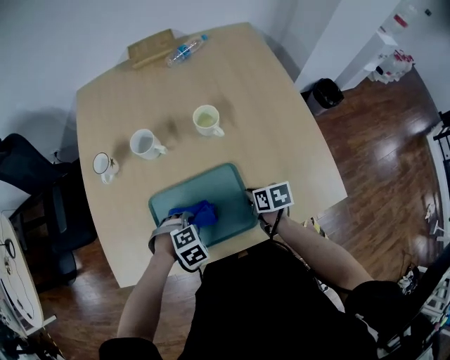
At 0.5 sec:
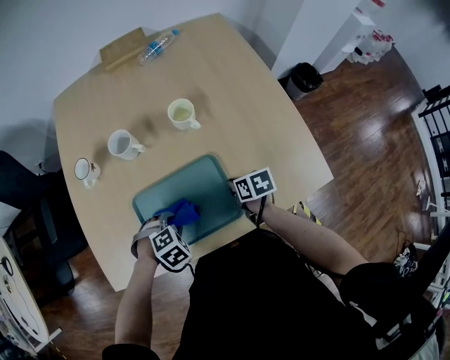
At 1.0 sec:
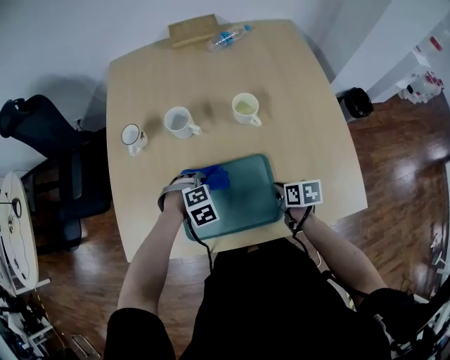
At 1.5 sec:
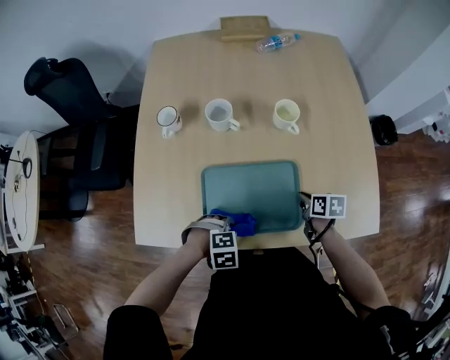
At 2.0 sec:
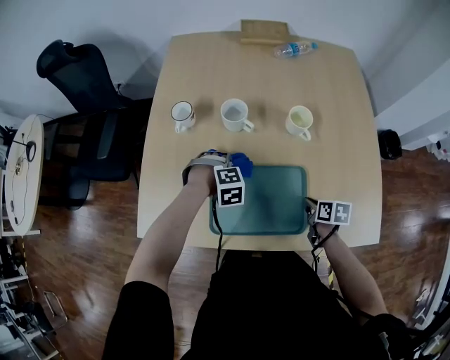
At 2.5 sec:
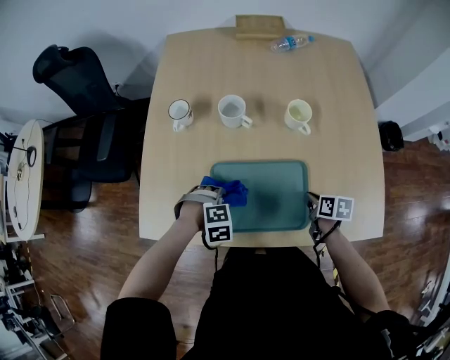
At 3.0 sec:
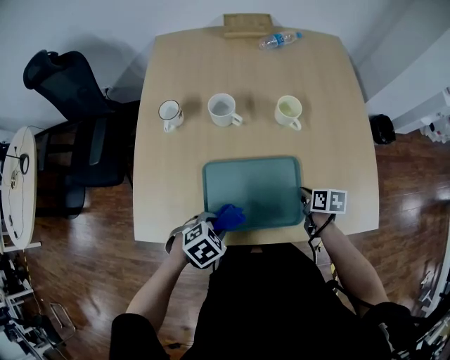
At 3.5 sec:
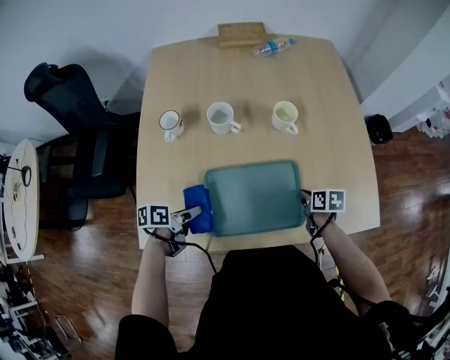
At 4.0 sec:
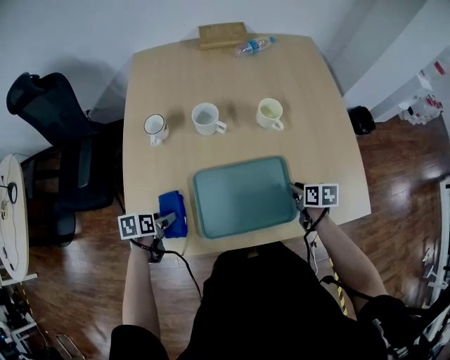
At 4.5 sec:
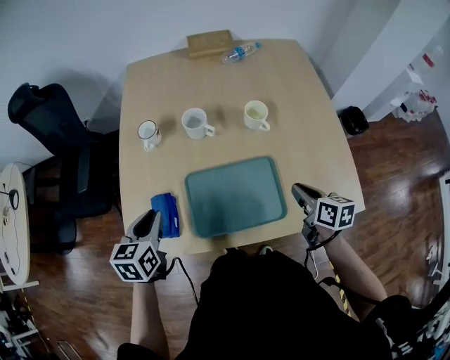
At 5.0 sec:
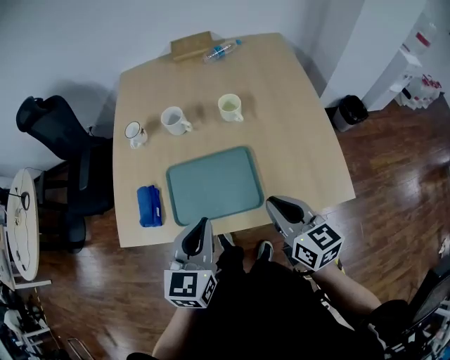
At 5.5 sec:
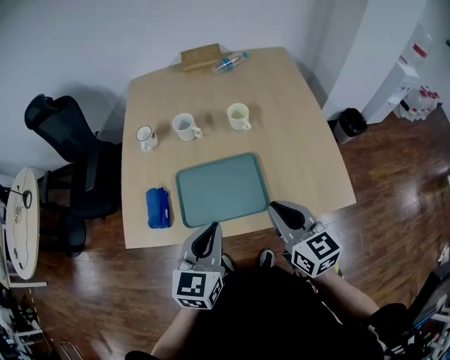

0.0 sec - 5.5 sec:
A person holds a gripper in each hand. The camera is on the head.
3.5 sec - 5.5 sec: The right gripper heads upward, covering some 25 cm, tips its fingers upward by some 40 degrees, and opens, then closes once more.

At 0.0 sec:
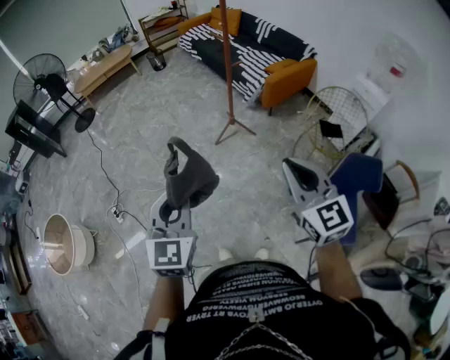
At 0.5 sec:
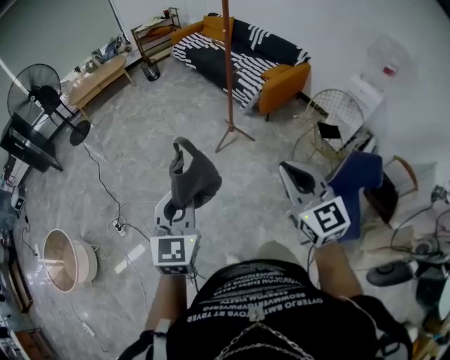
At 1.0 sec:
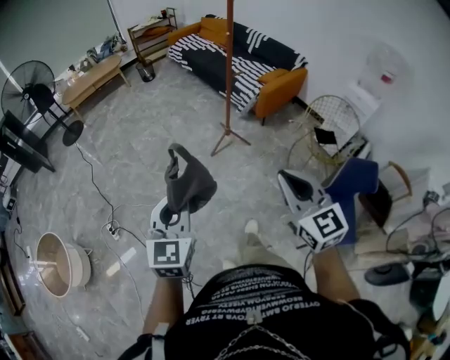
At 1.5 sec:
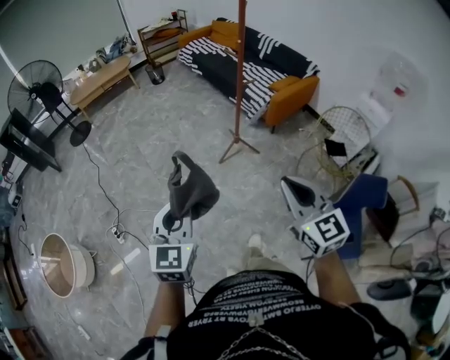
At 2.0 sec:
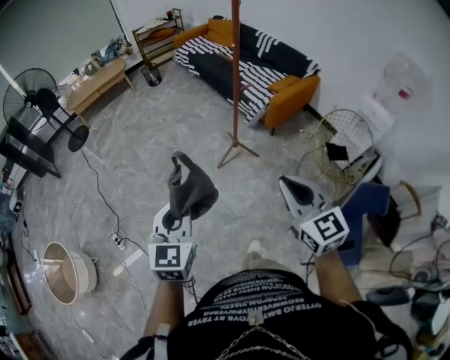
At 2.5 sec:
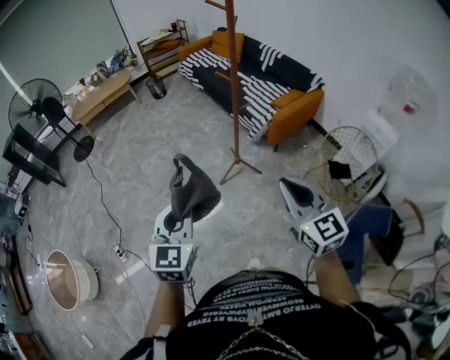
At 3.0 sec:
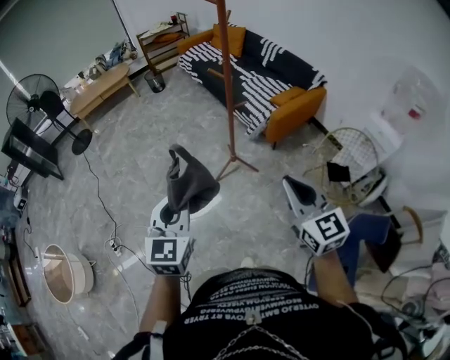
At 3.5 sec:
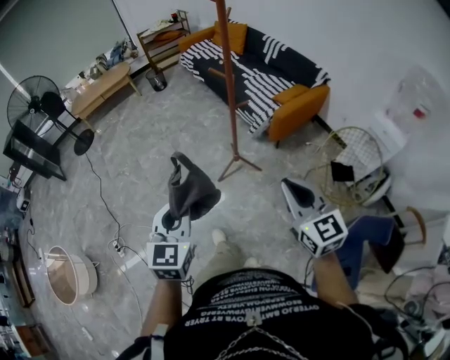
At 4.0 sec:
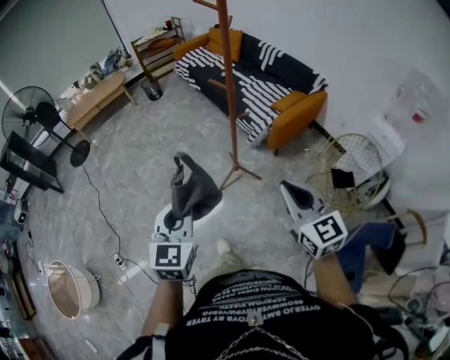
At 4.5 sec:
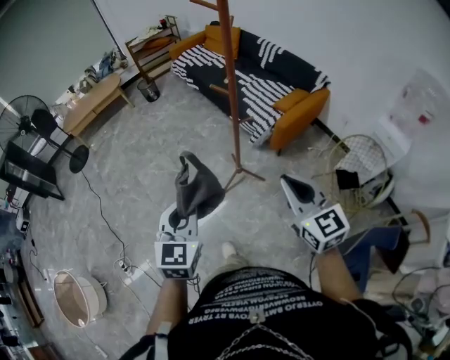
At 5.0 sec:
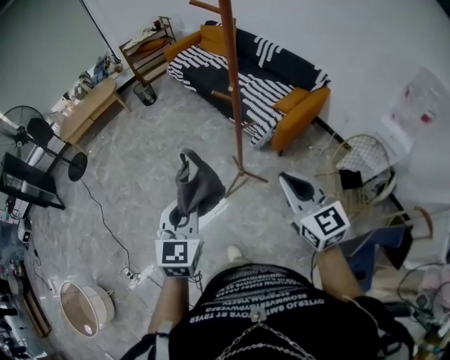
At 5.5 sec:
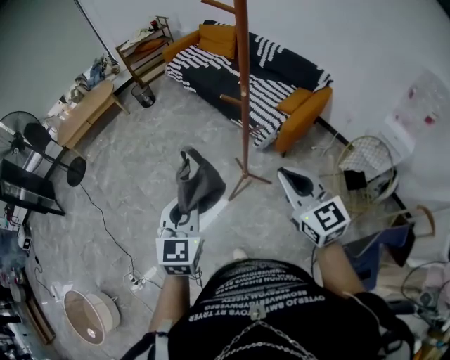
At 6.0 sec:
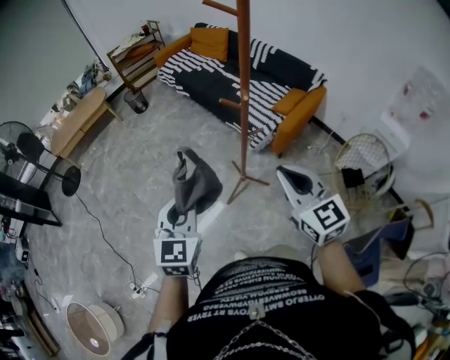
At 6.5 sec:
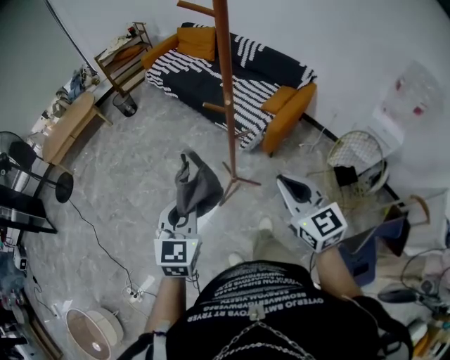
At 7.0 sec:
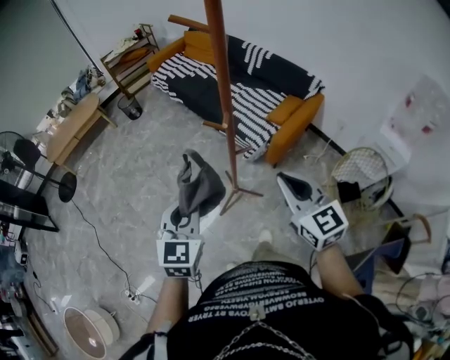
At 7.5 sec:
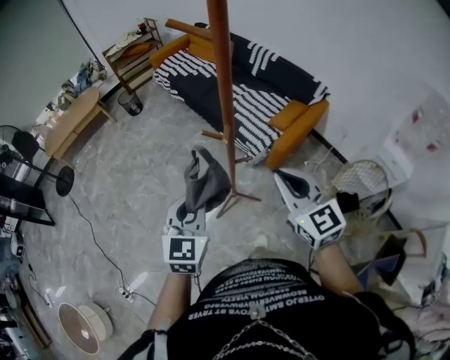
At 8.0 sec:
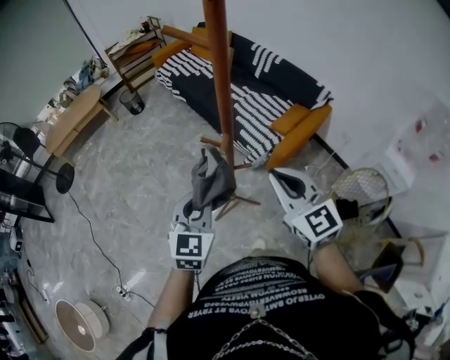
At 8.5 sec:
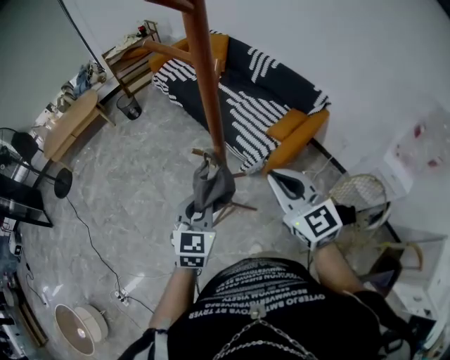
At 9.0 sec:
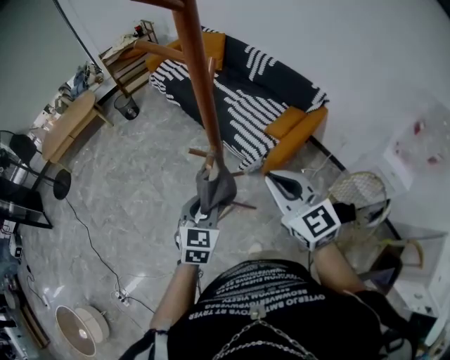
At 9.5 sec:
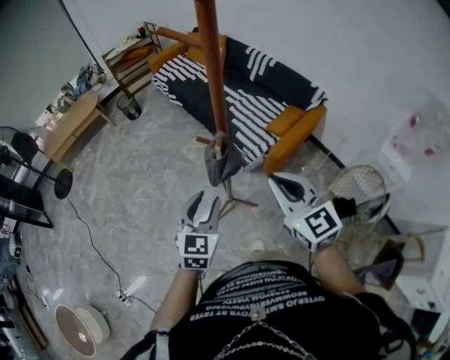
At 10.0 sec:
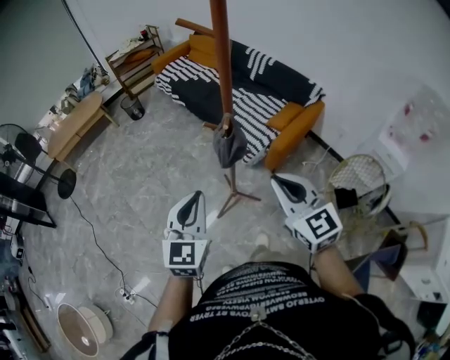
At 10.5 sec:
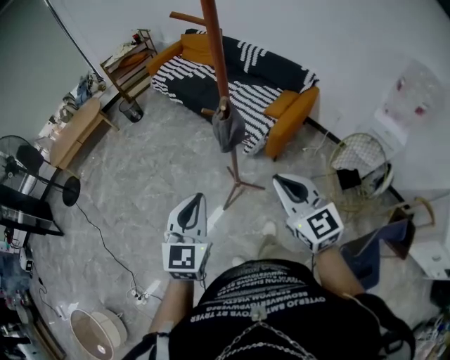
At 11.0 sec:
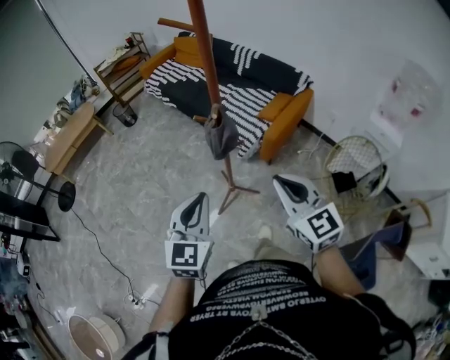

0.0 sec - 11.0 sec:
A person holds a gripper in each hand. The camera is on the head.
0.0 sec - 2.0 sec: The grippers both shift forward by roughly 15 cm.
2.0 sec - 3.5 sec: Both grippers travel together forward and to the right, roughly 15 cm.
3.5 sec - 5.5 sec: Both grippers move forward, some 25 cm.
5.5 sec - 7.5 sec: The grippers both shift forward and to the right by some 25 cm.
7.5 sec - 9.0 sec: The left gripper goes approximately 10 cm downward.
9.0 sec - 11.0 sec: The right gripper travels backward by approximately 20 cm, while the left gripper moves backward, upward and to the left, about 20 cm.

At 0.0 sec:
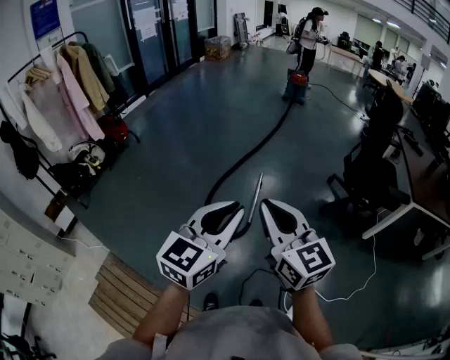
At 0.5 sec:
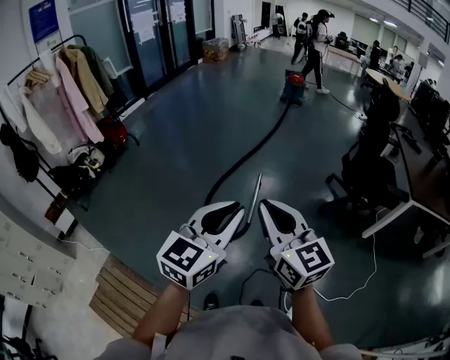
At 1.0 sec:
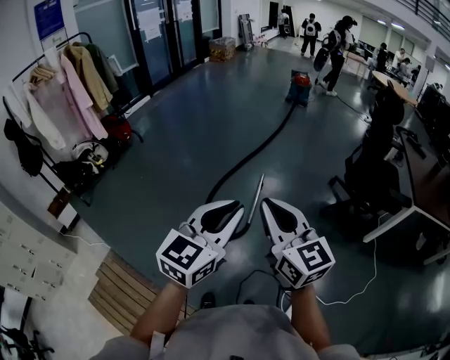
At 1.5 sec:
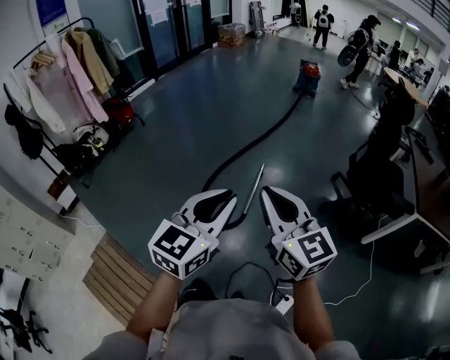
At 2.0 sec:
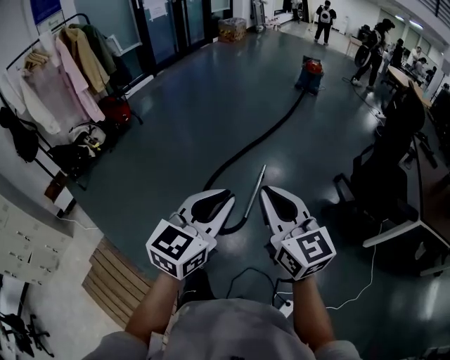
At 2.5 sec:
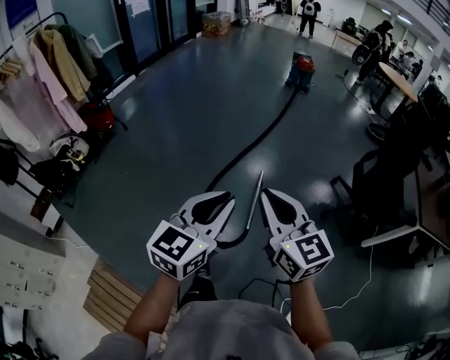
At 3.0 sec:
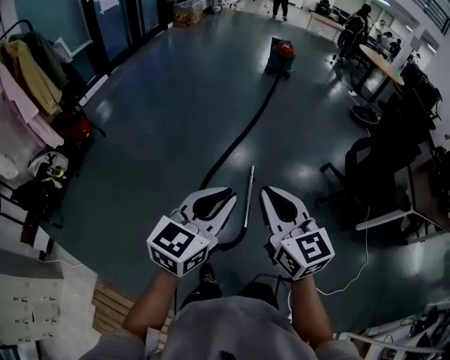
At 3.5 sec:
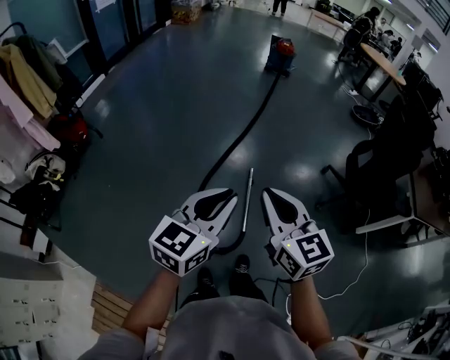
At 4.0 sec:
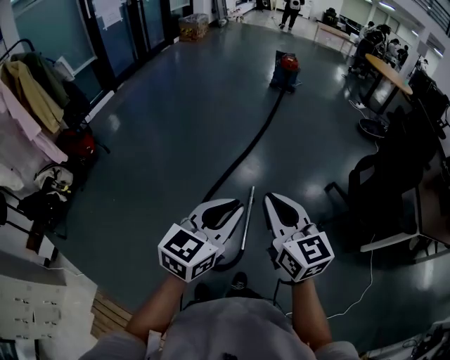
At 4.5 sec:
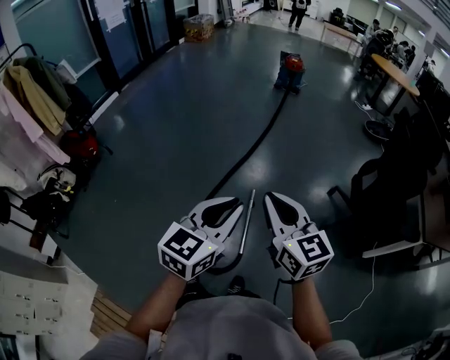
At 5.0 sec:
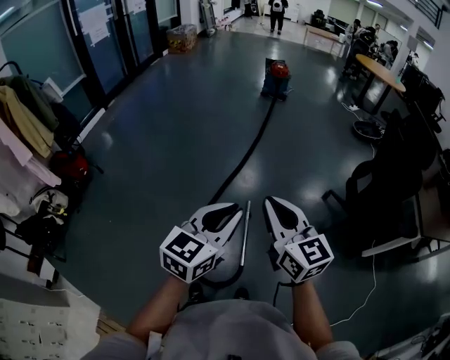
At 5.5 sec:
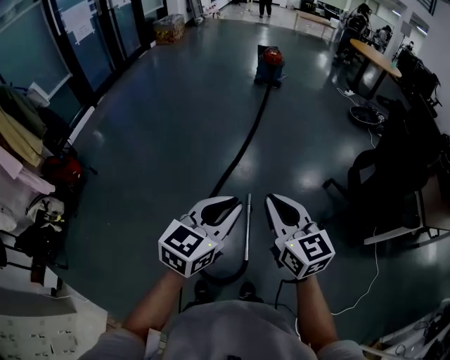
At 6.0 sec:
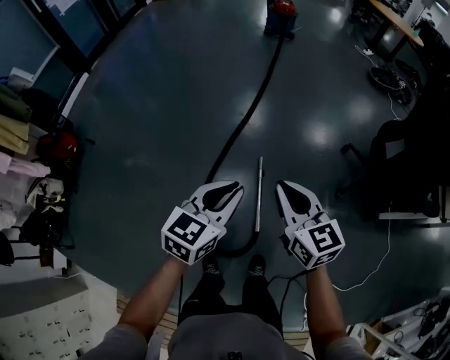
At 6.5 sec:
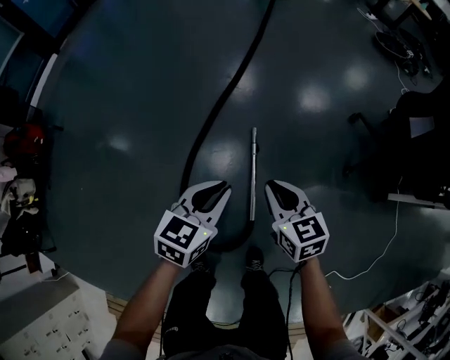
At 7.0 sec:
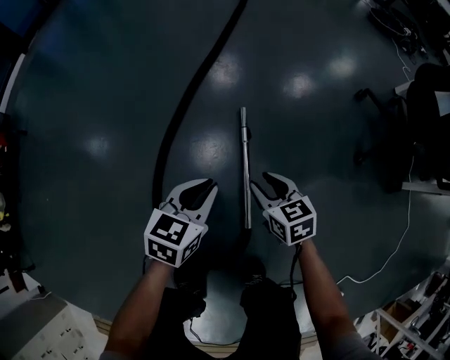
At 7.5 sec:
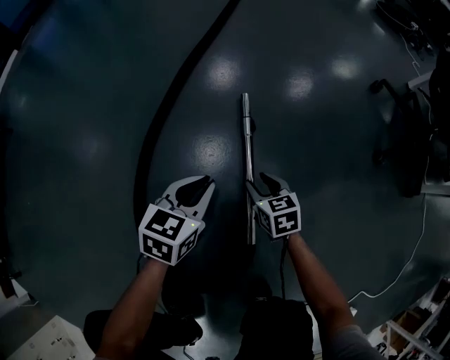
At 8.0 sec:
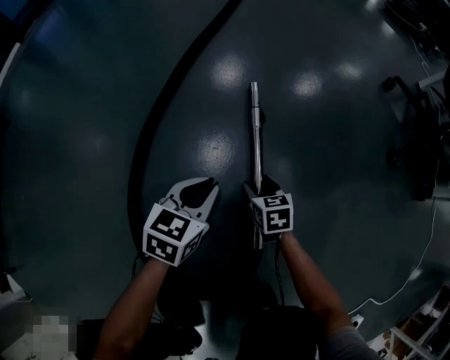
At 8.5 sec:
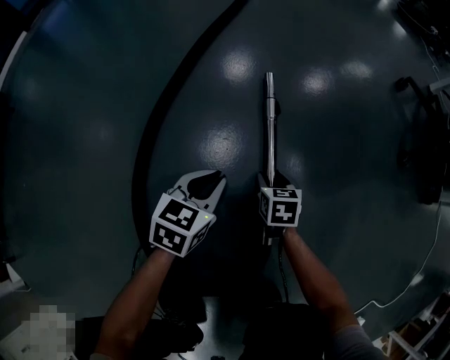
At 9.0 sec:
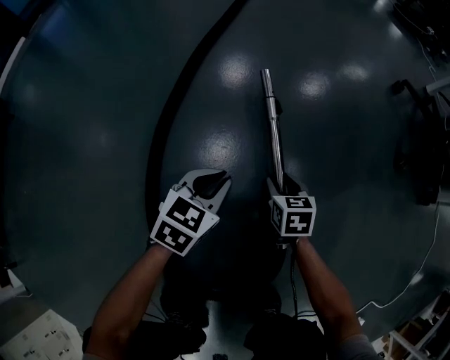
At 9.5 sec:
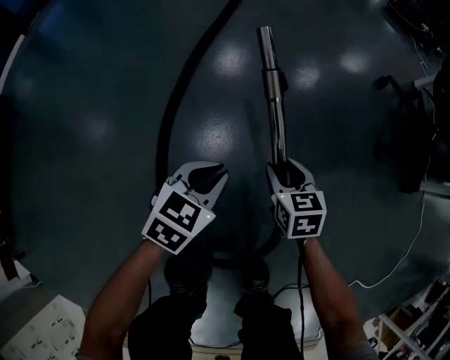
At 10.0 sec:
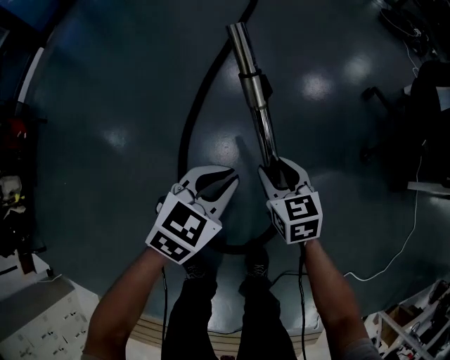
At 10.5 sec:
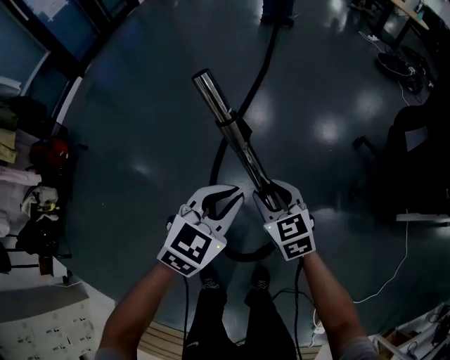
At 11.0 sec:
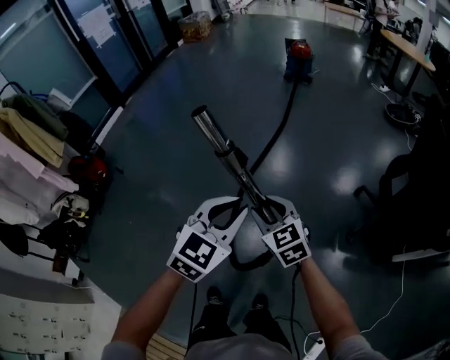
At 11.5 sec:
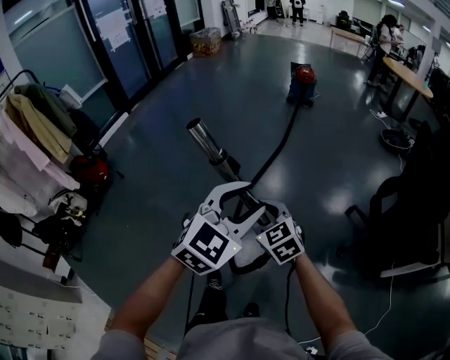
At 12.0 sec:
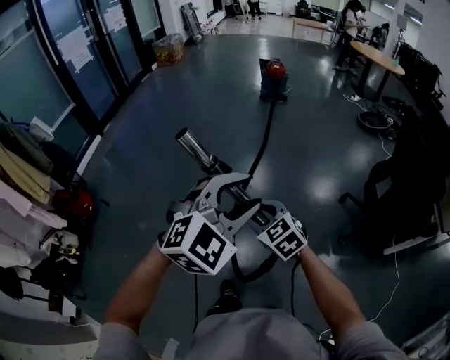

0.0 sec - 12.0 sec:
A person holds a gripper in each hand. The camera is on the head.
0.0 sec - 2.0 sec: The right gripper moves forward and to the right, some 15 cm. The left gripper moves forward, about 10 cm.
2.0 sec - 4.0 sec: The grippers both shift forward by approximately 30 cm.
4.0 sec - 6.0 sec: Both grippers travel together forward and downward, roughly 25 cm.
6.0 sec - 8.0 sec: The two grippers go about 80 cm downward. The right gripper tips its fingers downward by roughly 40 degrees, and opens.
8.0 sec - 10.0 sec: The two grippers go about 40 cm upward.
10.0 sec - 12.0 sec: Both grippers move upward, approximately 60 cm. The left gripper rotates around the line of its fingers by roughly 40 degrees, clockwise from behind, and opens. The right gripper rotates some 30 degrees.
